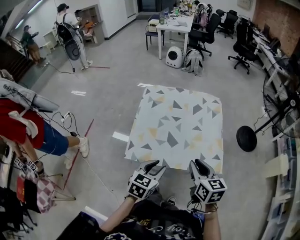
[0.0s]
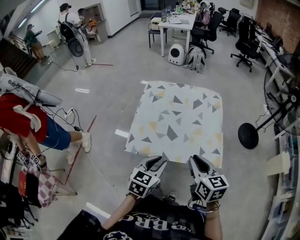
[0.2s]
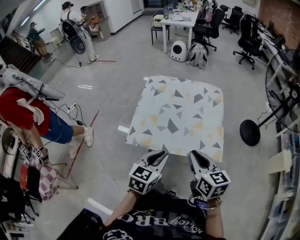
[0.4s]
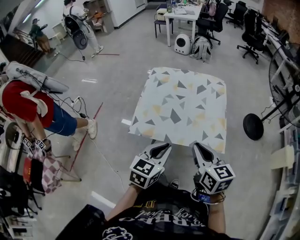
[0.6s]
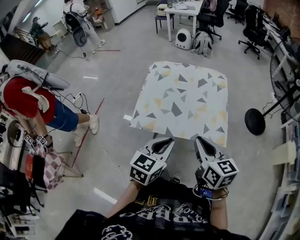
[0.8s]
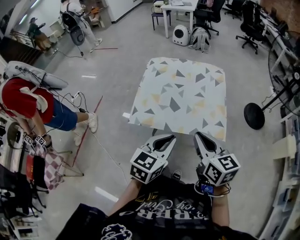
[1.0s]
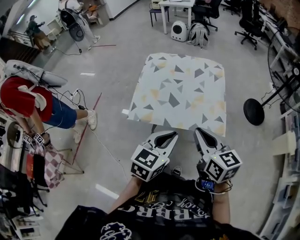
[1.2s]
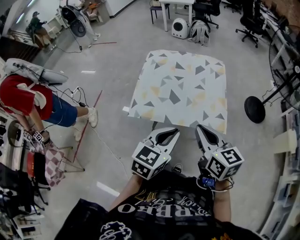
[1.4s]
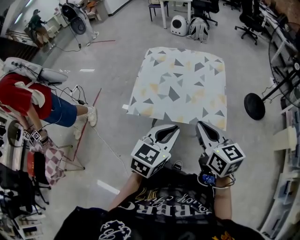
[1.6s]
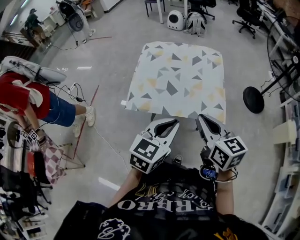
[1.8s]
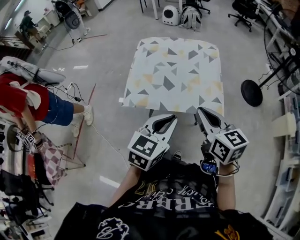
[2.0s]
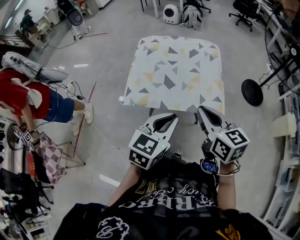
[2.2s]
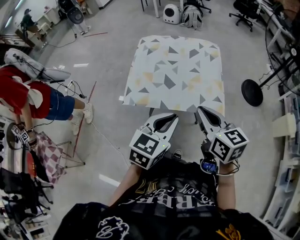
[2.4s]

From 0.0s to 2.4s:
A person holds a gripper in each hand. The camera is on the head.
From 0.0s to 1.2s: The right gripper is displaced backward and upward by approximately 10 cm. The left gripper heads backward, to the right and upward, covering roughly 15 cm, and closes.
From 1.2s to 2.4s: The grippers stay close to where they were, moving slightly.

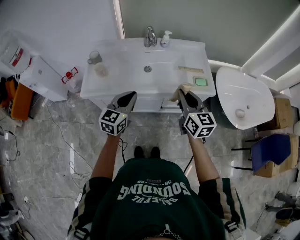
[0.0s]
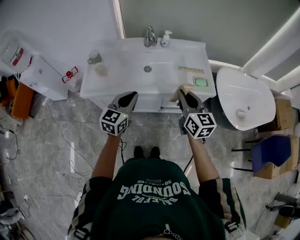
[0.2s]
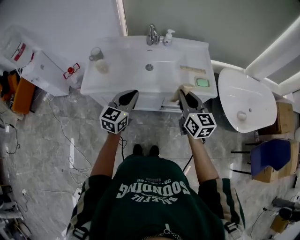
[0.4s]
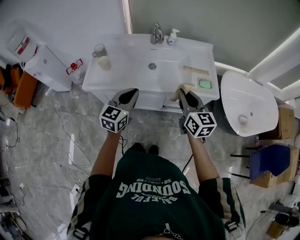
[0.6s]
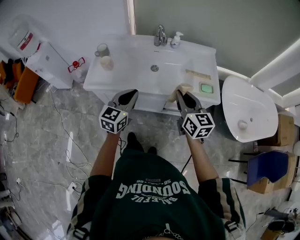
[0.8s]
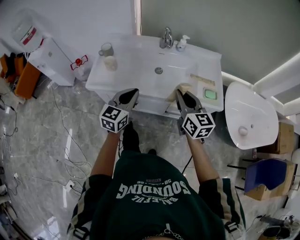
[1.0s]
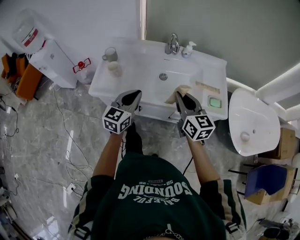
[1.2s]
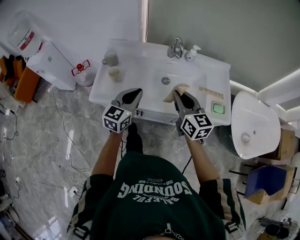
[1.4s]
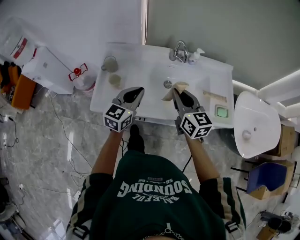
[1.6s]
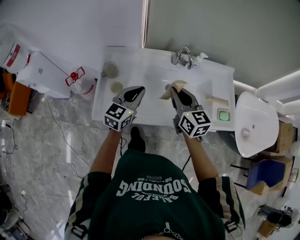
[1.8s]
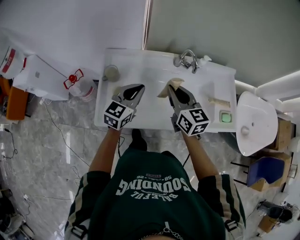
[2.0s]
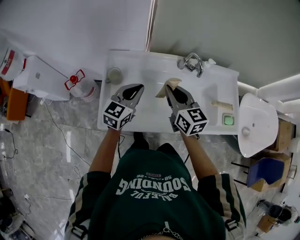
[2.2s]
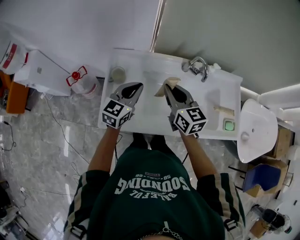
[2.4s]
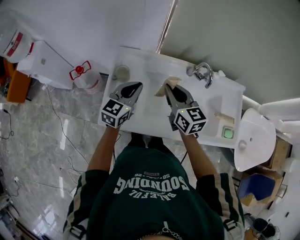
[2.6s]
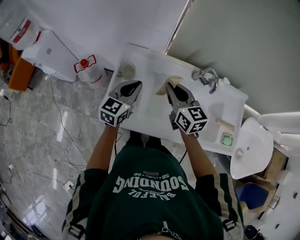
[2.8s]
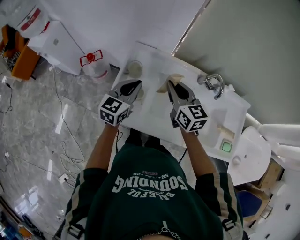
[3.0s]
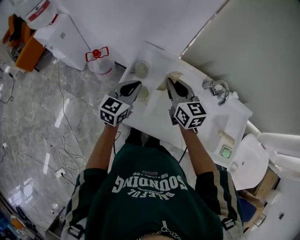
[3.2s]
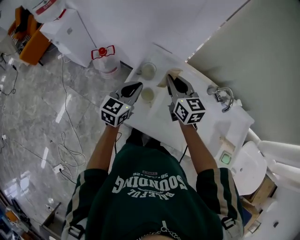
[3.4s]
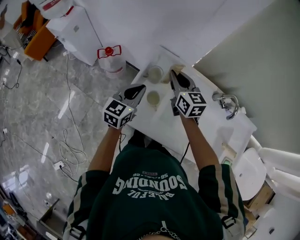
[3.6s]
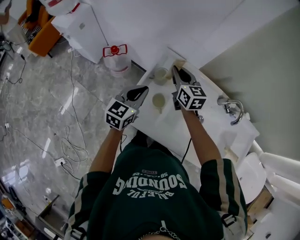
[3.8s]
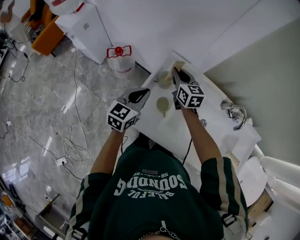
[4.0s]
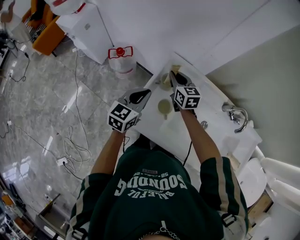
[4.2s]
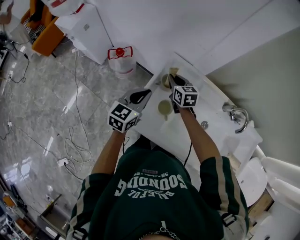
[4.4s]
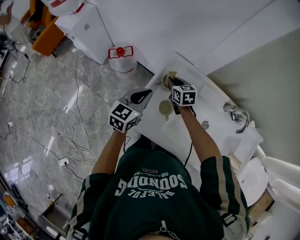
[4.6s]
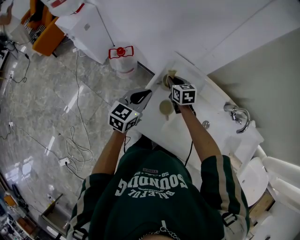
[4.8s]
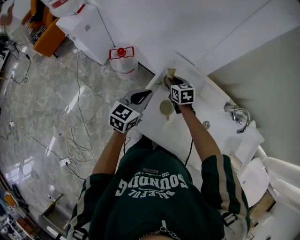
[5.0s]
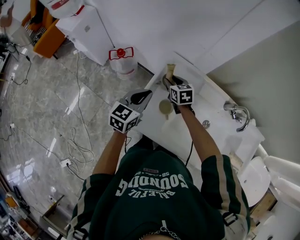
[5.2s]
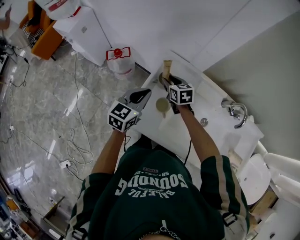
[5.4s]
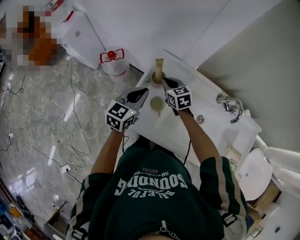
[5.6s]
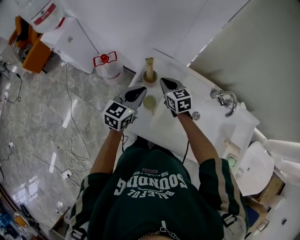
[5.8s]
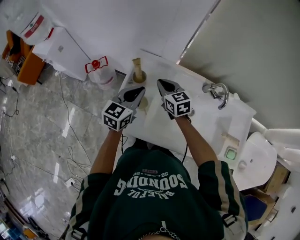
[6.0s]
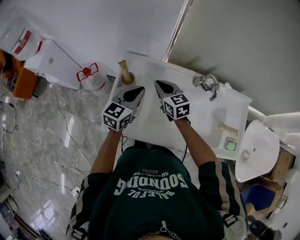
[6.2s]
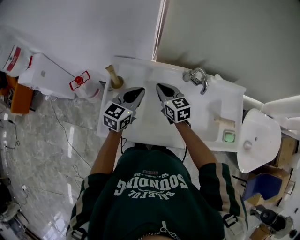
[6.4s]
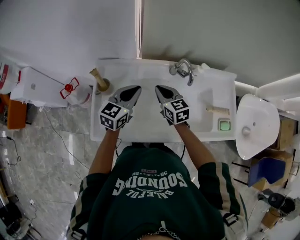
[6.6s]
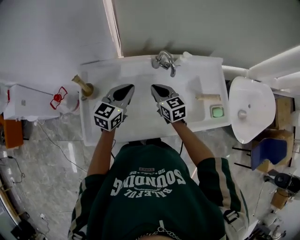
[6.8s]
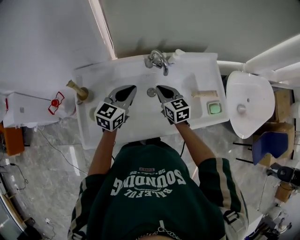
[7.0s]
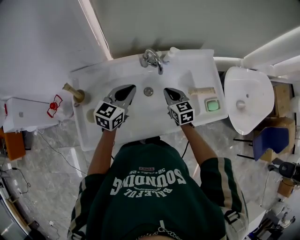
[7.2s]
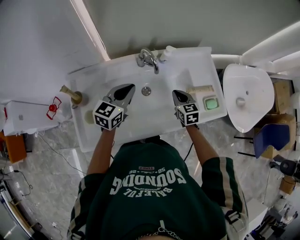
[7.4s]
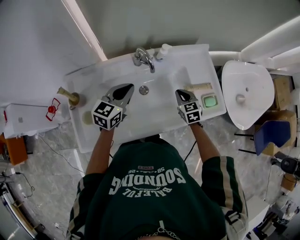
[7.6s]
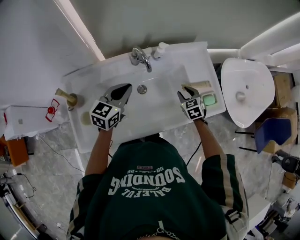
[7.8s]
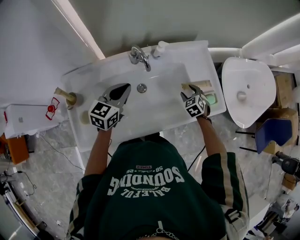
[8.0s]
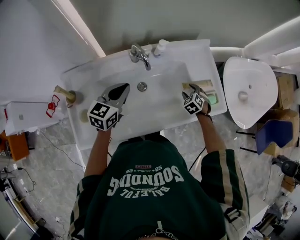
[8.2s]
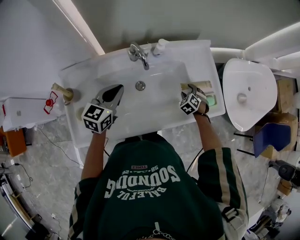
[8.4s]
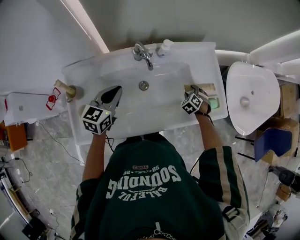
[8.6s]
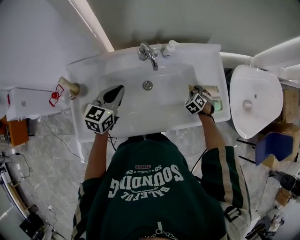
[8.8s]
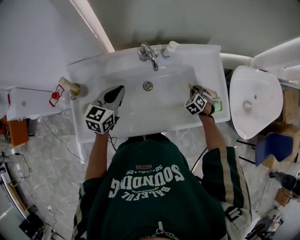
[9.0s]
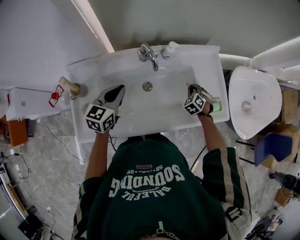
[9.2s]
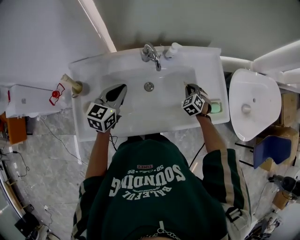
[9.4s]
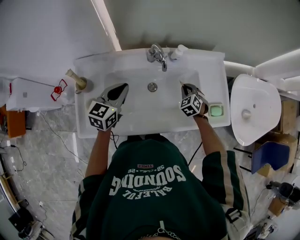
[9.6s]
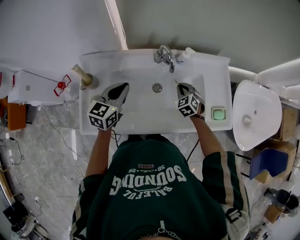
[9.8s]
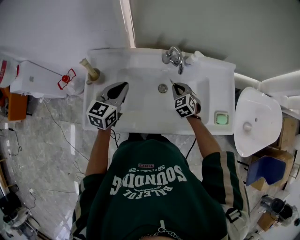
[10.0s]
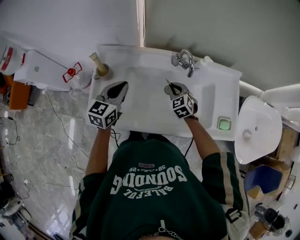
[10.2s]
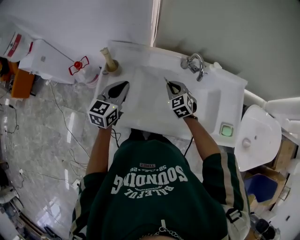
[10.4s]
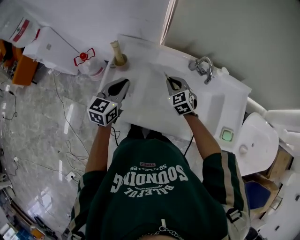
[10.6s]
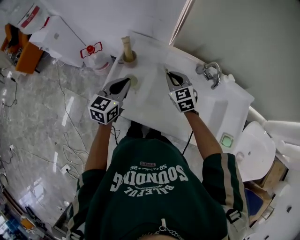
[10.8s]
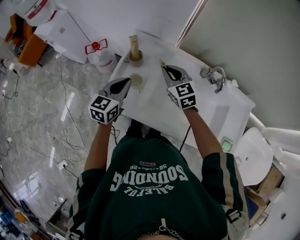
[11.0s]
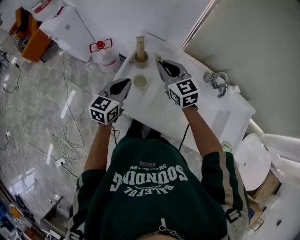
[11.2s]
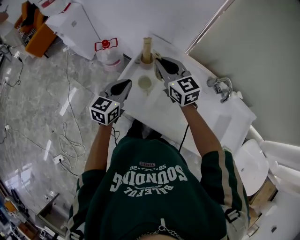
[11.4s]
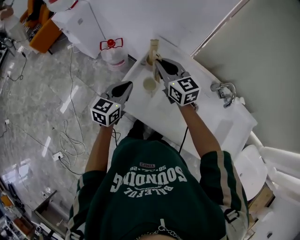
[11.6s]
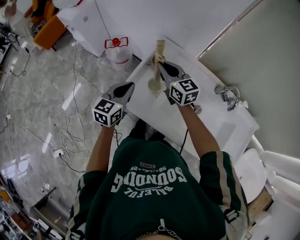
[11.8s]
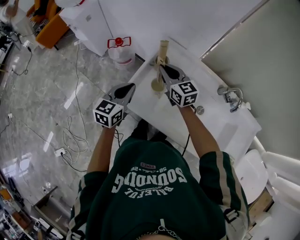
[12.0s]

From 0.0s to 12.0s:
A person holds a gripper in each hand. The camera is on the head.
From 0.0s to 1.6s: Both grippers travel together forward and to the left, about 25 cm.
From 1.6s to 3.0s: Both grippers move to the left and forward, roughly 25 cm.
From 3.0s to 4.4s: The left gripper travels to the left by some 10 cm. Meanwhile the right gripper goes roughly 25 cm downward, to the left and forward.
From 4.4s to 6.0s: The right gripper heads to the right, backward and upward, covering approximately 15 cm, and opens and closes again; the left gripper travels to the right by roughly 10 cm.
From 6.0s to 7.6s: The right gripper changes place by roughly 50 cm, and rotates about 40 degrees. Meanwhile the left gripper changes place by approximately 30 cm, and turns by about 30 degrees.
From 7.6s to 9.0s: The right gripper shifts some 15 cm downward, to the right and forward, rotates some 40 degrees, and opens, then closes once more.
From 9.0s to 10.4s: The left gripper moves about 20 cm, while the right gripper shifts by approximately 35 cm, and changes its angle by some 40 degrees.
From 10.4s to 12.0s: The left gripper changes place by approximately 20 cm, and swivels some 20 degrees. The right gripper shifts by some 30 cm, and changes its angle by some 40 degrees.

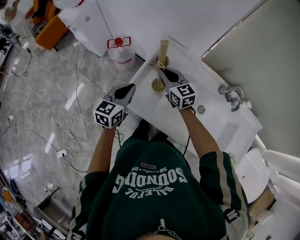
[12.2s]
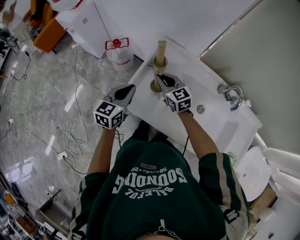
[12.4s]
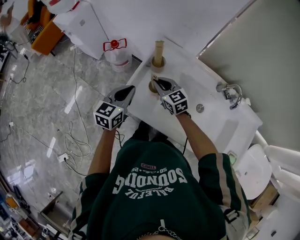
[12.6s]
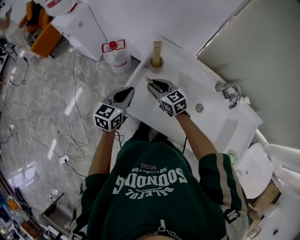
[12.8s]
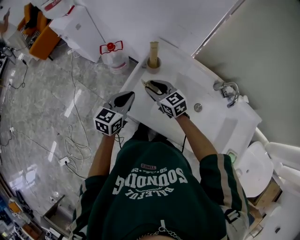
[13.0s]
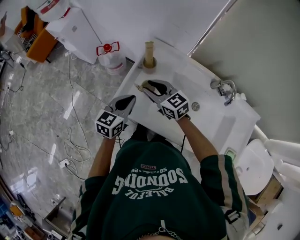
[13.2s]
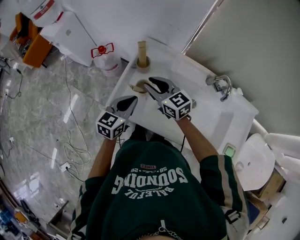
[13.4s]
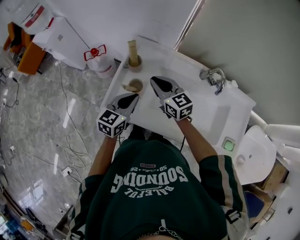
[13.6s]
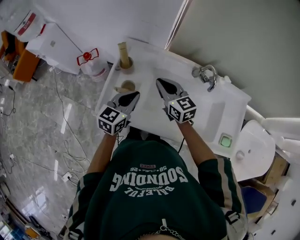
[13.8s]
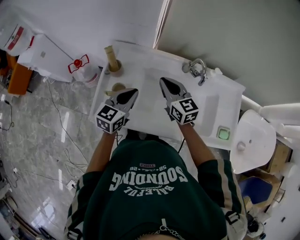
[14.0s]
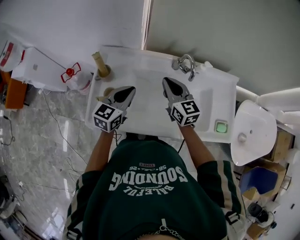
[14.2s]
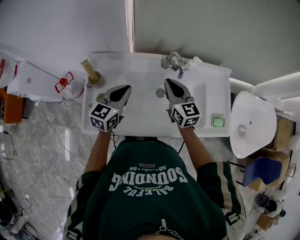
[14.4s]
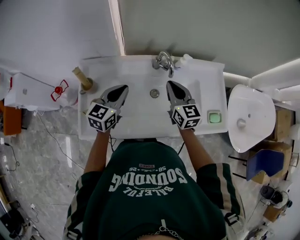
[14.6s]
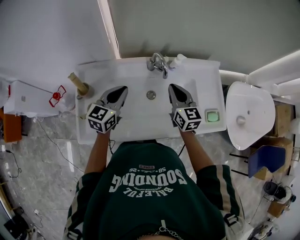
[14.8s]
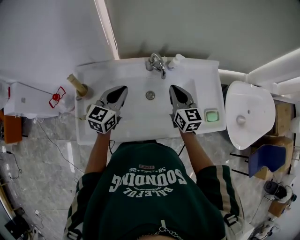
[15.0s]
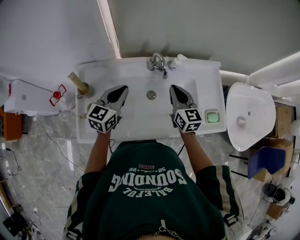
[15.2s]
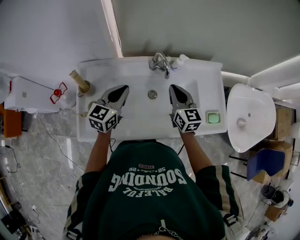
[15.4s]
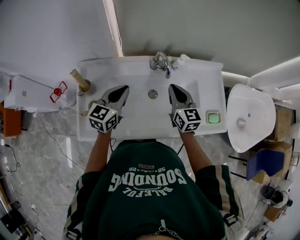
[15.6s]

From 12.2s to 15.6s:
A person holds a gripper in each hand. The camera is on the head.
From 12.2s to 13.8s: The left gripper heads to the right, covering approximately 15 cm, and turns by some 20 degrees. Meanwhile the right gripper shifts roughly 15 cm to the right and backward, and opens, then closes once more.
From 13.8s to 15.6s: The right gripper ends up approximately 25 cm from where it was, and changes its angle by about 40 degrees. Meanwhile the left gripper shifts by about 15 cm.

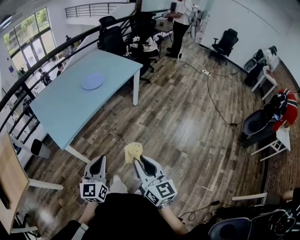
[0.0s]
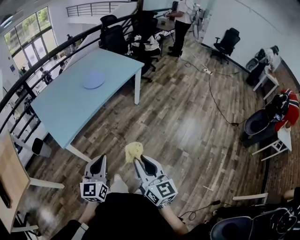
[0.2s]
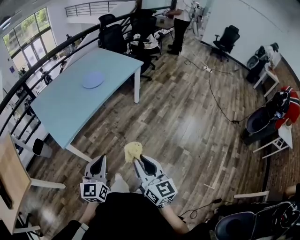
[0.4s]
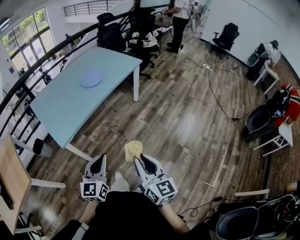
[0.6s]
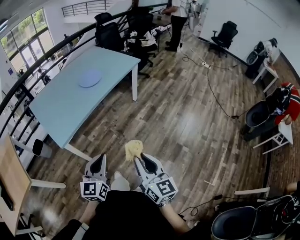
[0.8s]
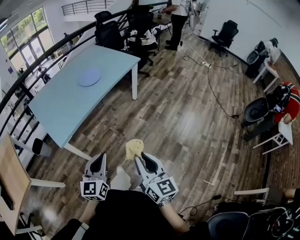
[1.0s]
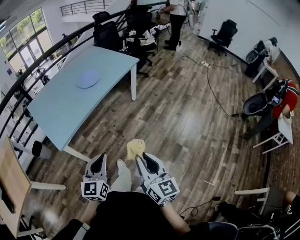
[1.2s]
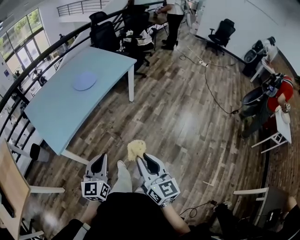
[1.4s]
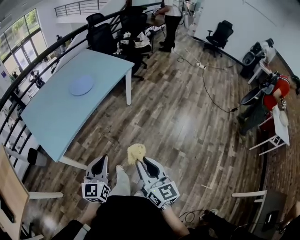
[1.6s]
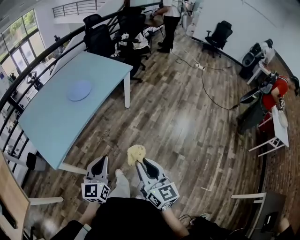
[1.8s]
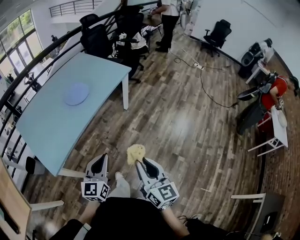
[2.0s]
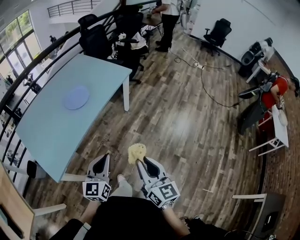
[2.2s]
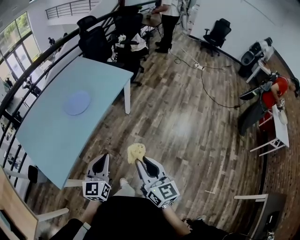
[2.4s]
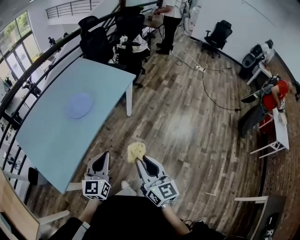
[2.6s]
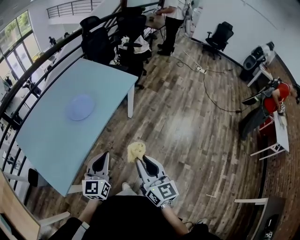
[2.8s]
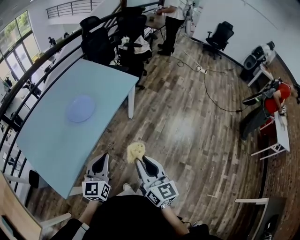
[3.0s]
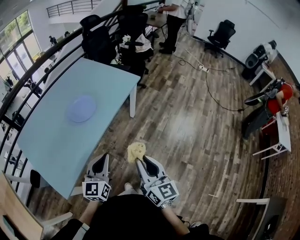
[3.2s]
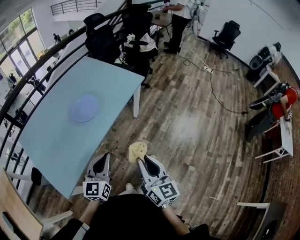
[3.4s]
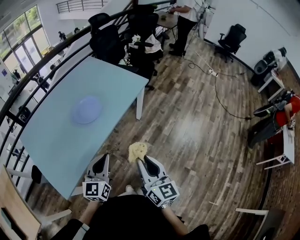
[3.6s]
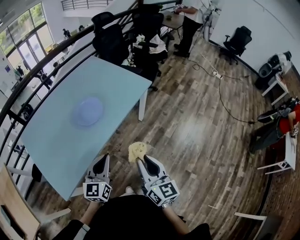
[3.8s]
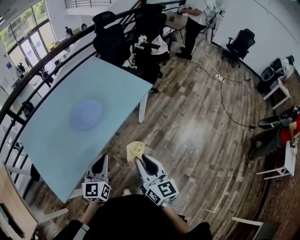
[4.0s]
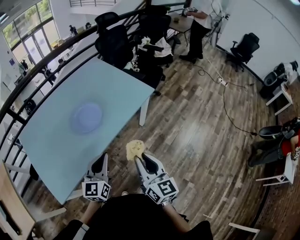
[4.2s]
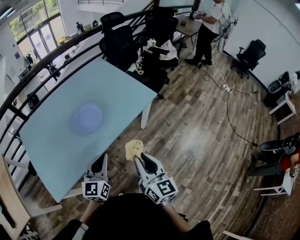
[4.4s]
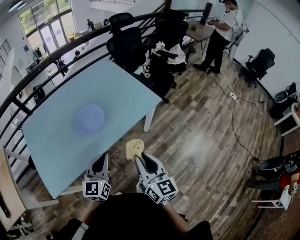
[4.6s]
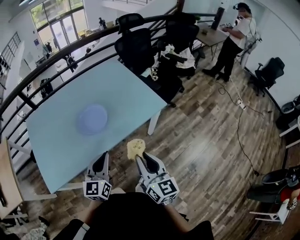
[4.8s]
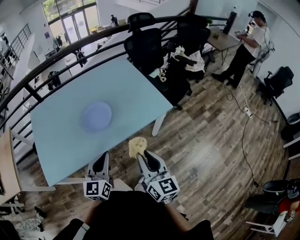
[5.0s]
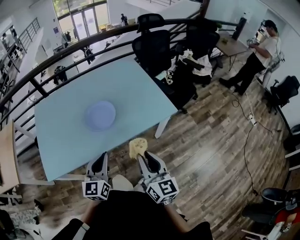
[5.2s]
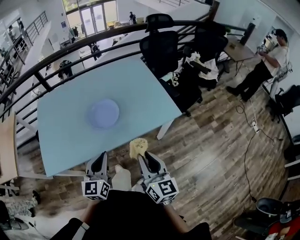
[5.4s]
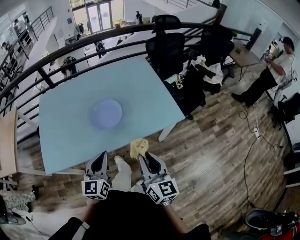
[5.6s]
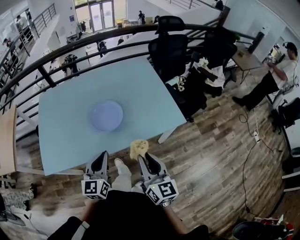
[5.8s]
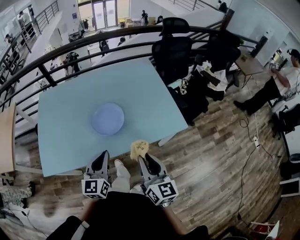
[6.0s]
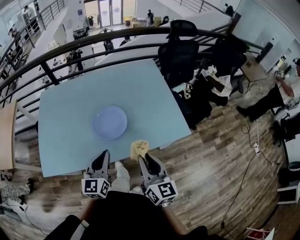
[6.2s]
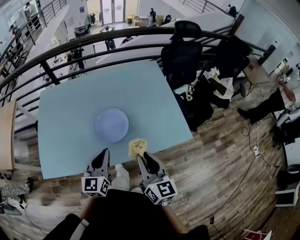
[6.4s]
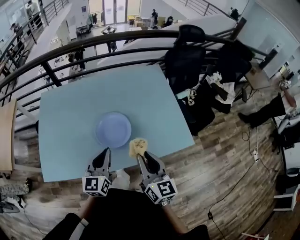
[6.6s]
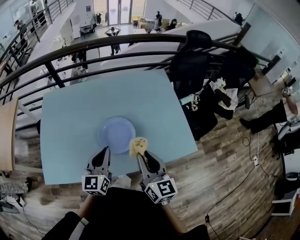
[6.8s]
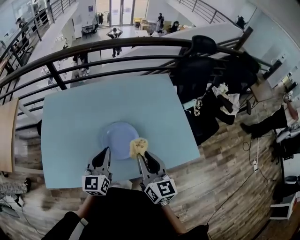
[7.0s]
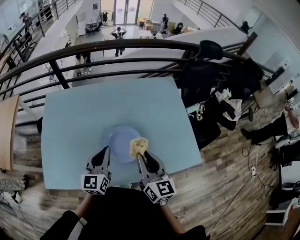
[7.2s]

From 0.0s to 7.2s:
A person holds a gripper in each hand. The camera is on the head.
From 0.0s to 1.4s: The left gripper ends up approximately 5 cm from where it was; the right gripper ends up about 5 cm from where it was.
From 1.4s to 2.8s: Both grippers move forward, about 30 cm.
From 2.8s to 4.4s: Both grippers move forward, roughly 20 cm.
From 4.4s to 5.8s: The left gripper shifts roughly 5 cm forward, and changes its angle by roughly 30 degrees; the right gripper goes approximately 15 cm forward, and swivels approximately 20 degrees.
From 5.8s to 7.2s: The grippers both shift forward by roughly 25 cm.
